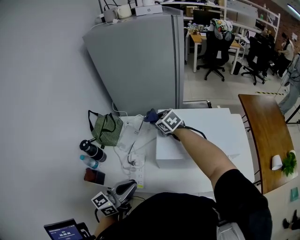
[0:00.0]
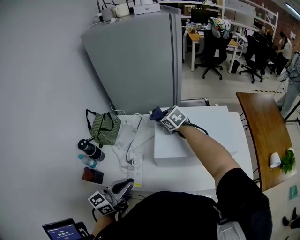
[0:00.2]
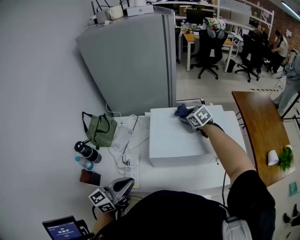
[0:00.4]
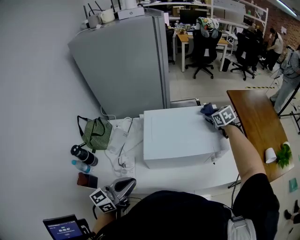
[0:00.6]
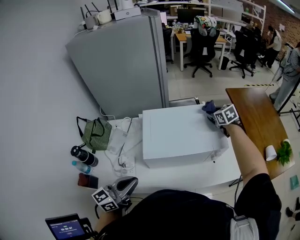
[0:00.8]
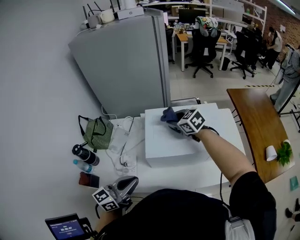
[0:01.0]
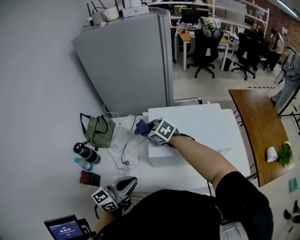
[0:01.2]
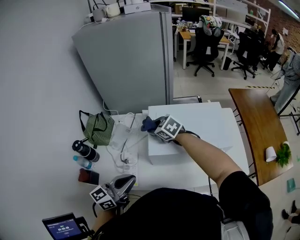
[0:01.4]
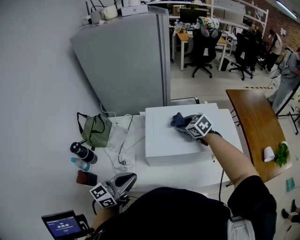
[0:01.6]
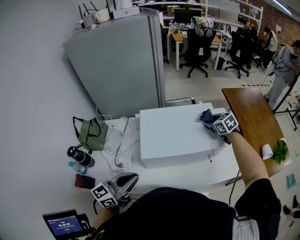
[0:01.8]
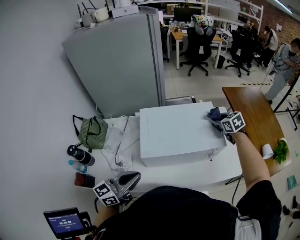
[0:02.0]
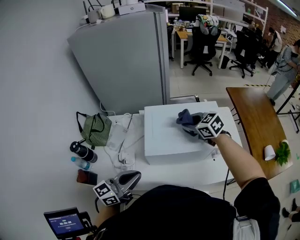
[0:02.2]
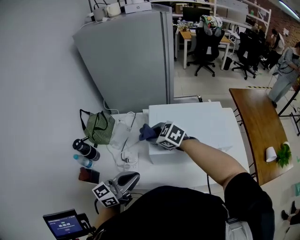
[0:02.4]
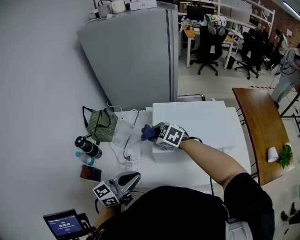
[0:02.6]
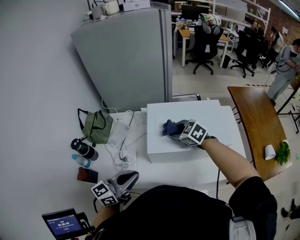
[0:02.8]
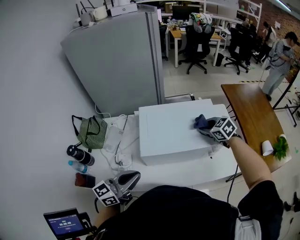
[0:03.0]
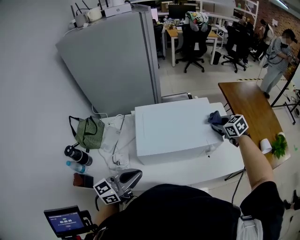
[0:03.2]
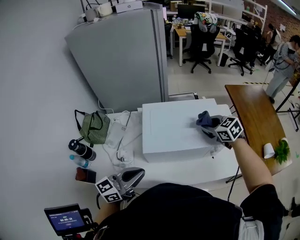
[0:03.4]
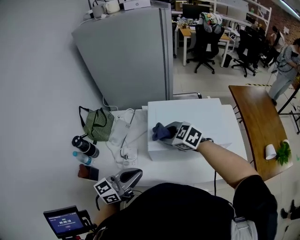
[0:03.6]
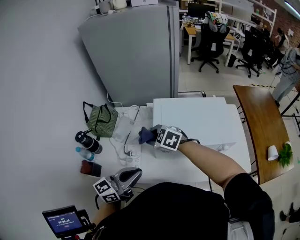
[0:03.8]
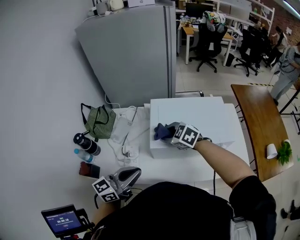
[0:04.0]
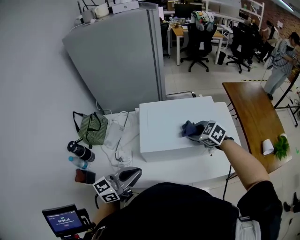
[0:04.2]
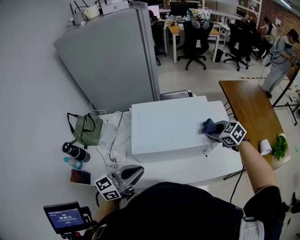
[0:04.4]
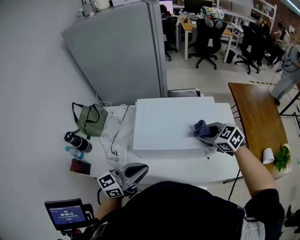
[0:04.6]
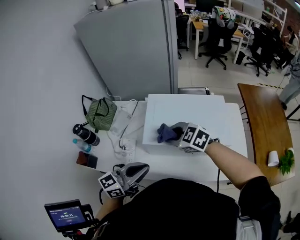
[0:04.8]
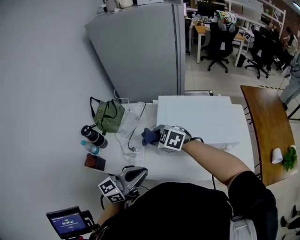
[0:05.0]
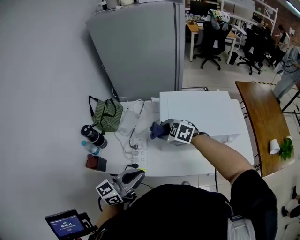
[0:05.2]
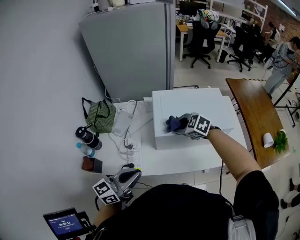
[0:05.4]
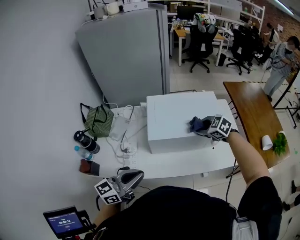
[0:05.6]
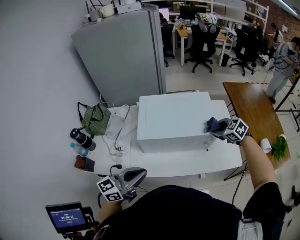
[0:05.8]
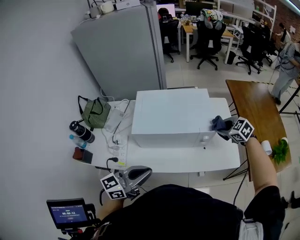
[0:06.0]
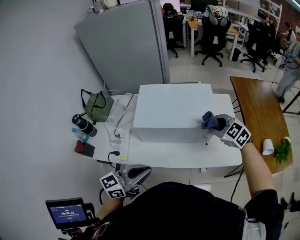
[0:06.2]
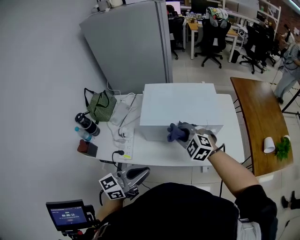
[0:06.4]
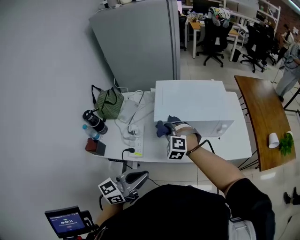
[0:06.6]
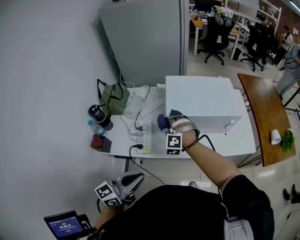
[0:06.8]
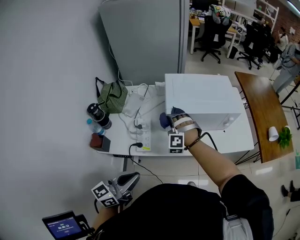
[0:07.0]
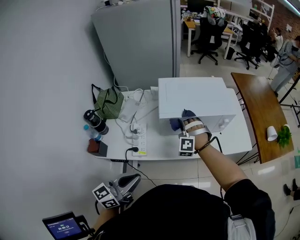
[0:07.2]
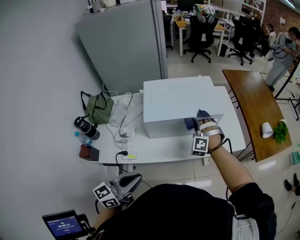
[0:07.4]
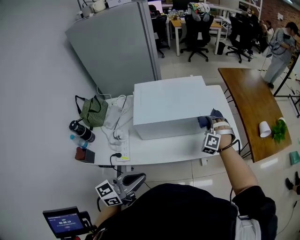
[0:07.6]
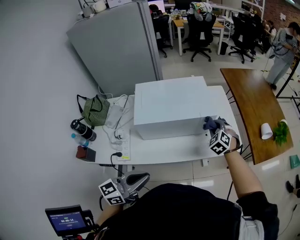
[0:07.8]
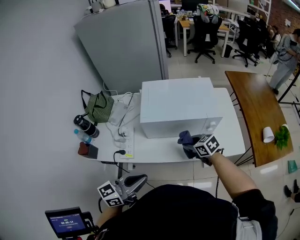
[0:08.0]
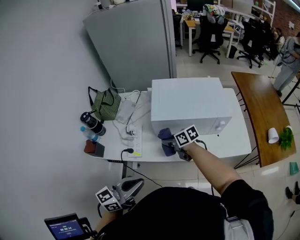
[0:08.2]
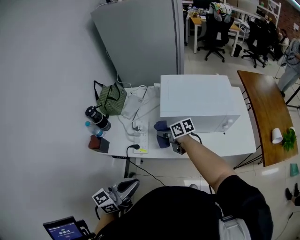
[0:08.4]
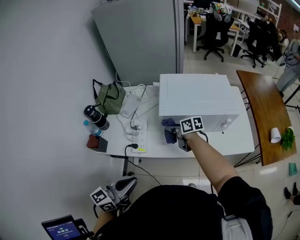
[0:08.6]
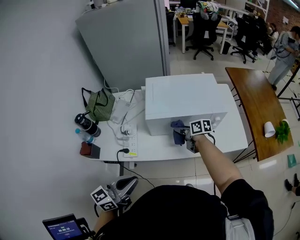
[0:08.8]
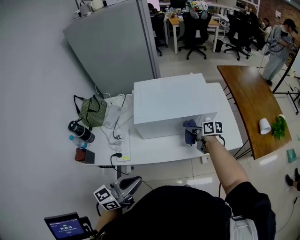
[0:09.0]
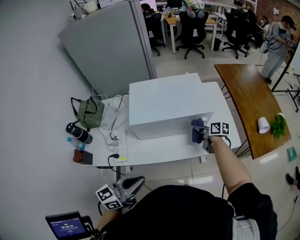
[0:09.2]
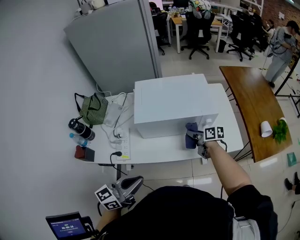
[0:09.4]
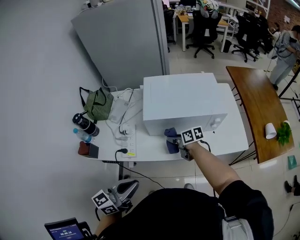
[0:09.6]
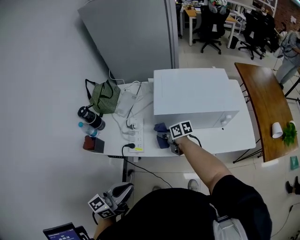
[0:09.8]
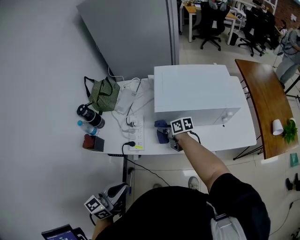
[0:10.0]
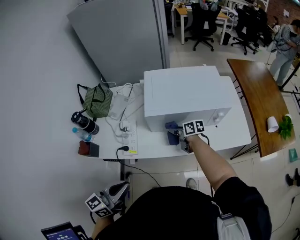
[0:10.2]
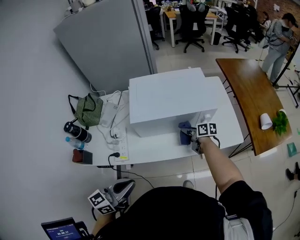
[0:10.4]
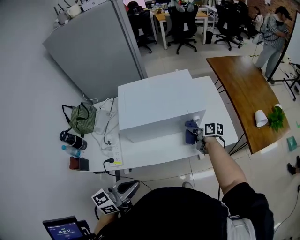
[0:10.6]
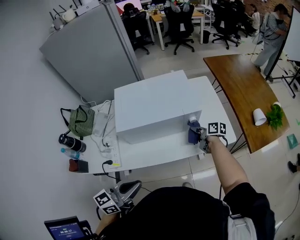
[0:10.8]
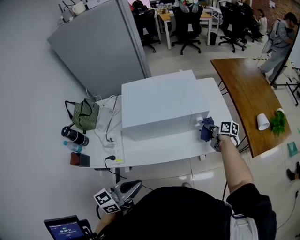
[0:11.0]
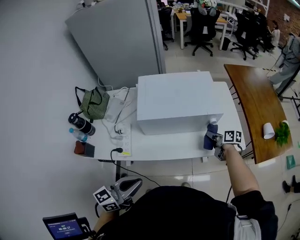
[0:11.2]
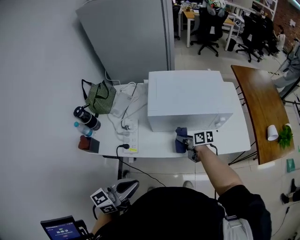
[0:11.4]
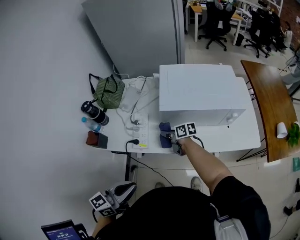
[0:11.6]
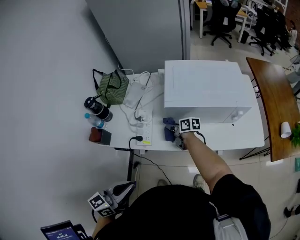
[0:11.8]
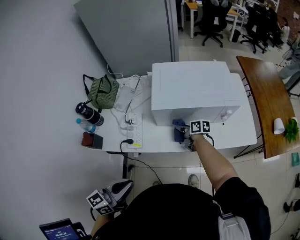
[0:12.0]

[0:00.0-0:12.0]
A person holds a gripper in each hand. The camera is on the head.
0:00.0 to 0:01.6: The right gripper goes left and right, some 40 cm each way, reversing 2 times.
0:01.6 to 0:03.0: The right gripper swings left and right, some 40 cm each way, with 2 reversals.
0:03.0 to 0:04.4: The right gripper swings left and right, some 40 cm each way, with 2 reversals; the left gripper moves to the right, approximately 5 cm.
0:04.4 to 0:06.0: The left gripper heads backward, covering roughly 10 cm, and goes to the left and returns, some 15 cm each way; the right gripper reaches roughly 40 cm to the left, then returns.
0:06.0 to 0:07.6: The right gripper rotates about 60 degrees.
0:07.6 to 0:09.0: The right gripper rolls clockwise, seen from behind, by some 110 degrees.
0:09.0 to 0:10.4: The right gripper goes left and right, about 35 cm each way, reversing 2 times. The left gripper travels to the left and back again, approximately 15 cm each way.
0:10.4 to 0:12.0: The left gripper ends up roughly 10 cm from where it was.

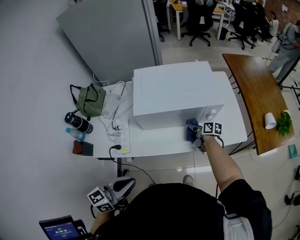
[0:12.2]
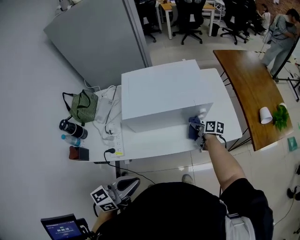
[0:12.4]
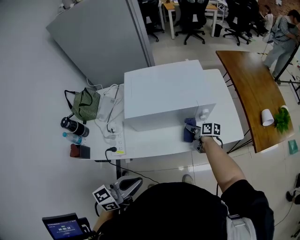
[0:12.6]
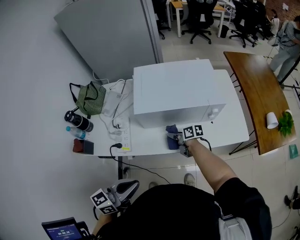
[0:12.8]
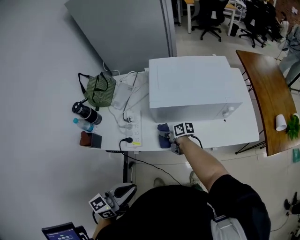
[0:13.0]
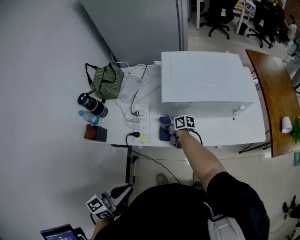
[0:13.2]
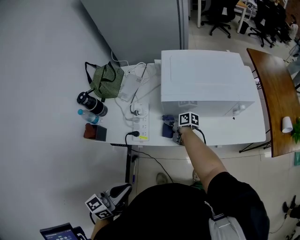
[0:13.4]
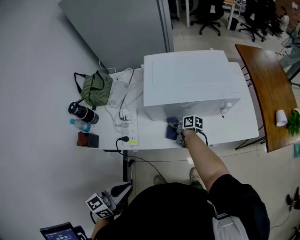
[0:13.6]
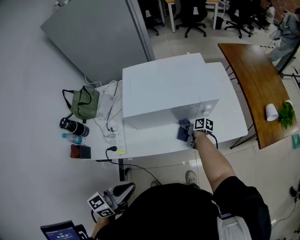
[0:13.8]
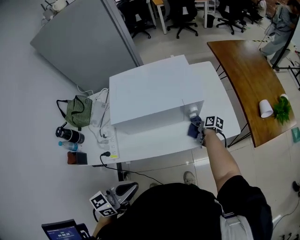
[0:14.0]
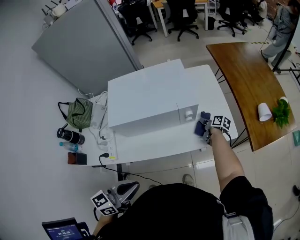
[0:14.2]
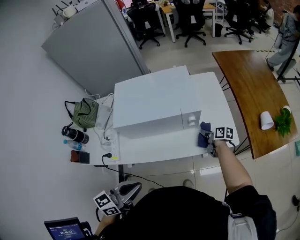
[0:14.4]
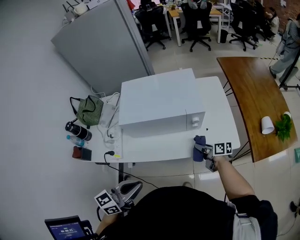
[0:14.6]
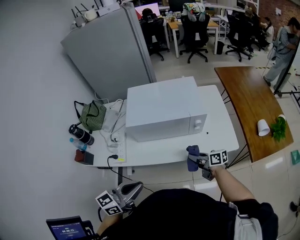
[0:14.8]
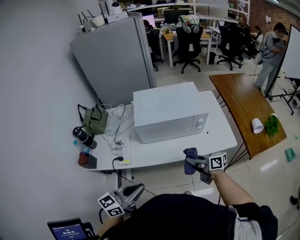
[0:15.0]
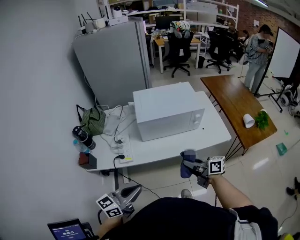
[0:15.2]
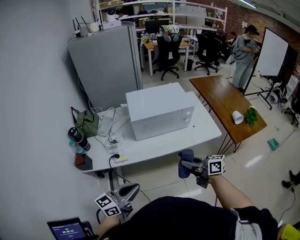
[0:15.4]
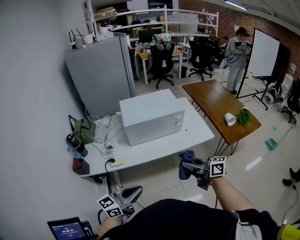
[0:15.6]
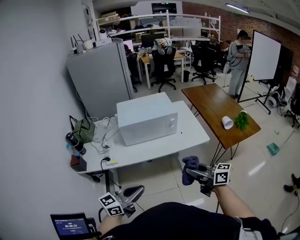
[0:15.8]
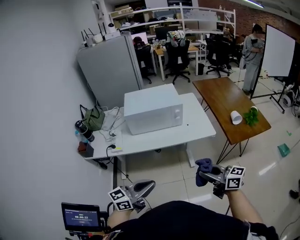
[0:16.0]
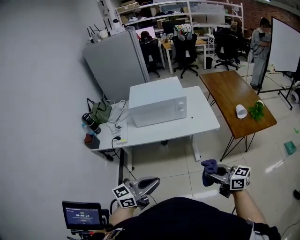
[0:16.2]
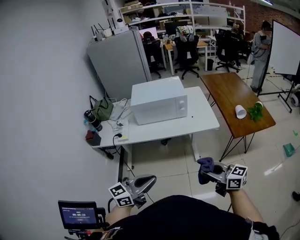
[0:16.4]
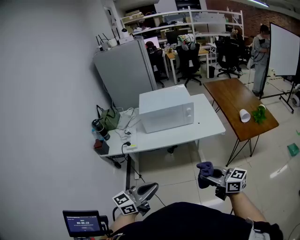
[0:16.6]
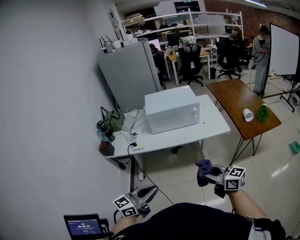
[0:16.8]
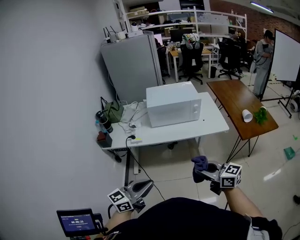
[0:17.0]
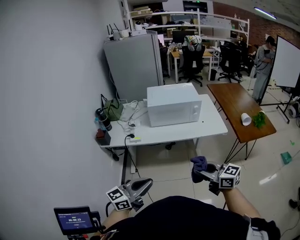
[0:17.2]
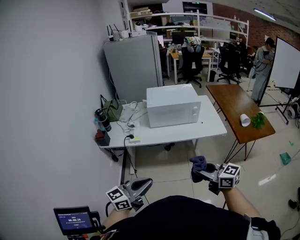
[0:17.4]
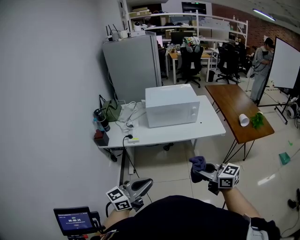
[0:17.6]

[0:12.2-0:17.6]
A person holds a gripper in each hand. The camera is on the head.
0:12.2 to 0:13.6: The right gripper moves left and right over some 40 cm, changing direction 2 times; the left gripper swings left and right, some 15 cm each way, with 2 reversals.
0:13.6 to 0:15.0: The left gripper is displaced to the right by about 10 cm. The right gripper heads upward, backward and to the right, covering some 30 cm, and turns by approximately 30 degrees.
0:15.0 to 0:16.2: Both grippers travel together backward and to the right, some 30 cm. The right gripper swivels approximately 20 degrees.
0:16.2 to 0:17.6: The grippers both shift to the left by some 15 cm.

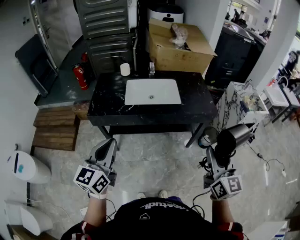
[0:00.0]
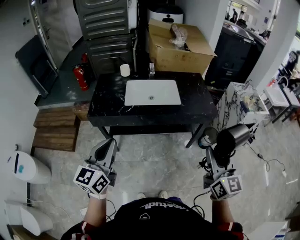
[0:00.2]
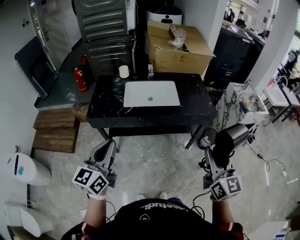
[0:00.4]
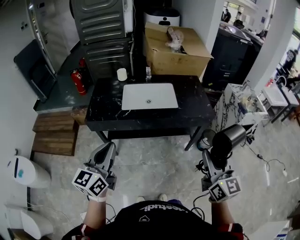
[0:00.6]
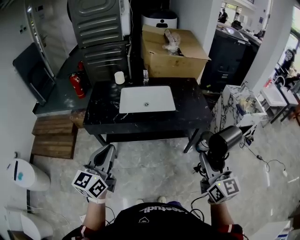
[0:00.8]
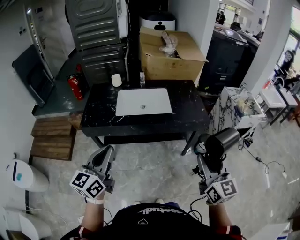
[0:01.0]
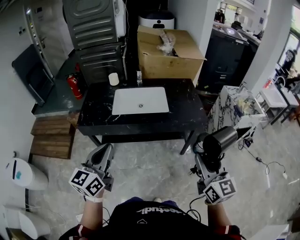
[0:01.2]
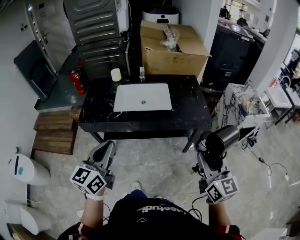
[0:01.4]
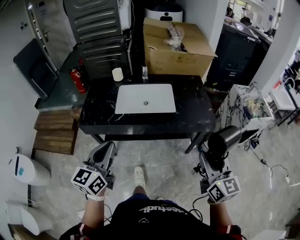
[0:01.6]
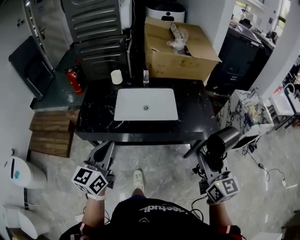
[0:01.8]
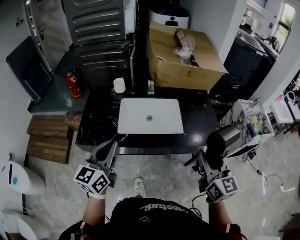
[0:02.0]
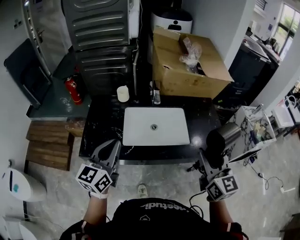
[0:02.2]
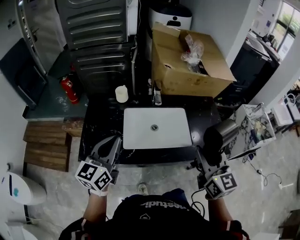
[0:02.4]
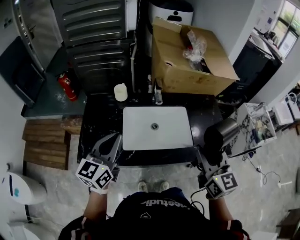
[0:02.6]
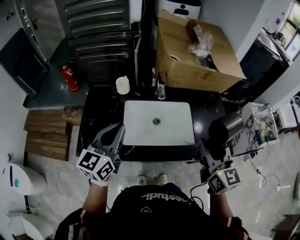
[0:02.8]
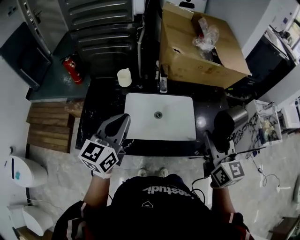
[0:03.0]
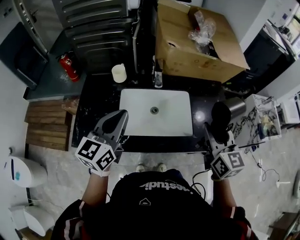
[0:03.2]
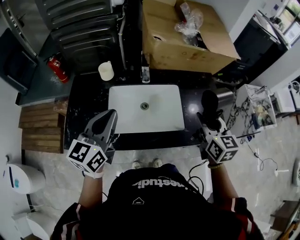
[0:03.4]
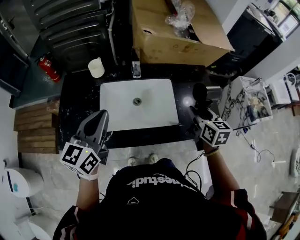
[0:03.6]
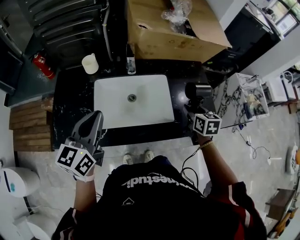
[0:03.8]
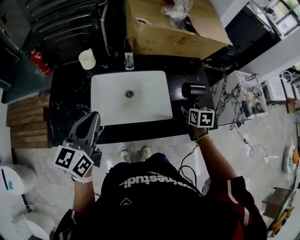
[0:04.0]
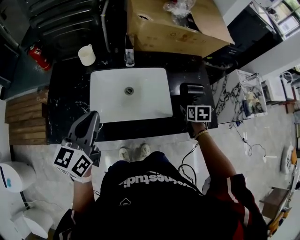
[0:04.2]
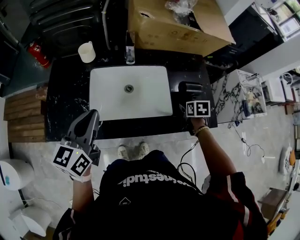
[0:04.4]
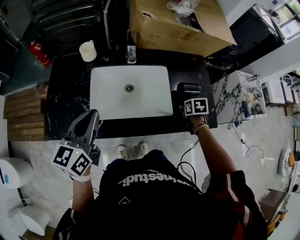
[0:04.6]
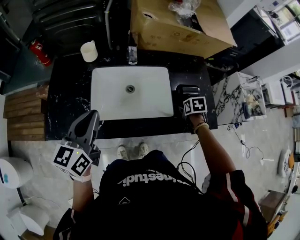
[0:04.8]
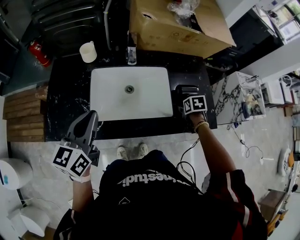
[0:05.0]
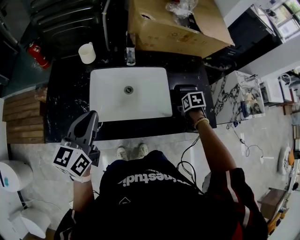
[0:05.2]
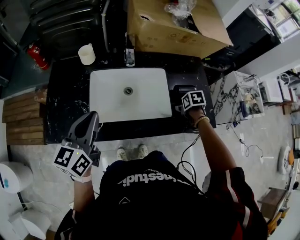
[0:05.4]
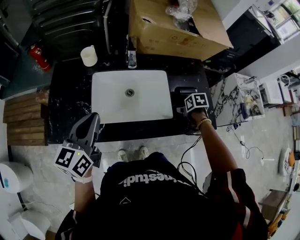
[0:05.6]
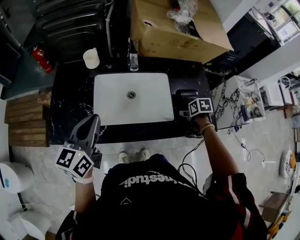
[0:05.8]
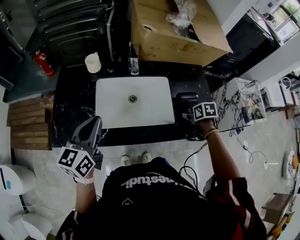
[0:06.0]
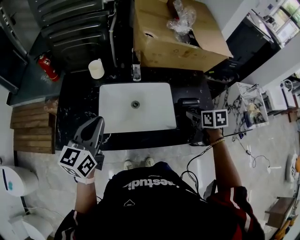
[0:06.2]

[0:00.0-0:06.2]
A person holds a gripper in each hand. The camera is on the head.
0:00.0 to 0:01.6: Both grippers move forward and to the right, roughly 10 cm.
0:01.6 to 0:03.2: Both grippers travel together forward, approximately 35 cm.
0:03.2 to 0:04.6: The left gripper is displaced downward by roughly 5 cm. The right gripper is displaced downward by roughly 30 cm, and angles its fingers downward, by about 60 degrees.
0:04.6 to 0:06.2: The right gripper heads upward, covering roughly 10 cm.
